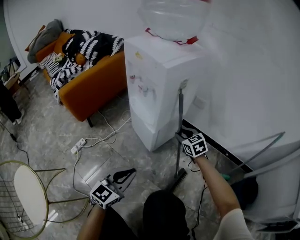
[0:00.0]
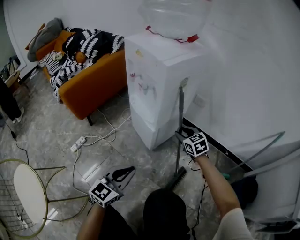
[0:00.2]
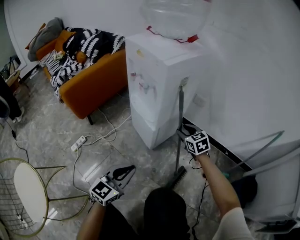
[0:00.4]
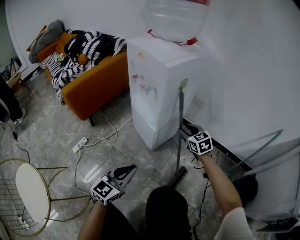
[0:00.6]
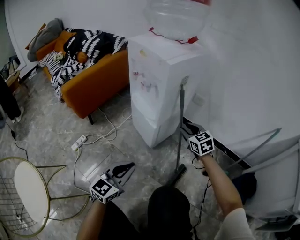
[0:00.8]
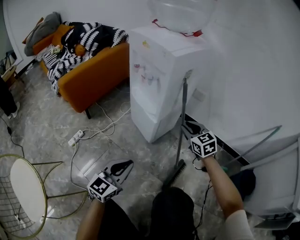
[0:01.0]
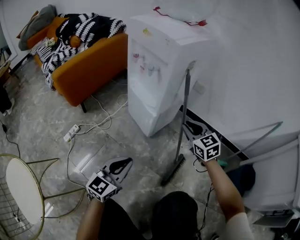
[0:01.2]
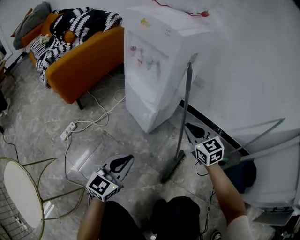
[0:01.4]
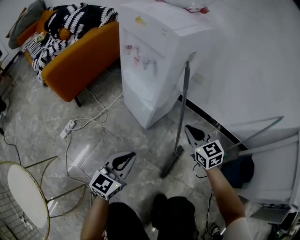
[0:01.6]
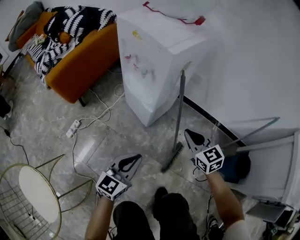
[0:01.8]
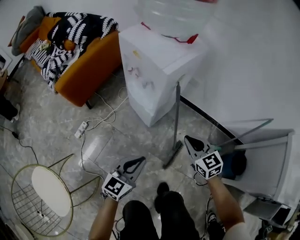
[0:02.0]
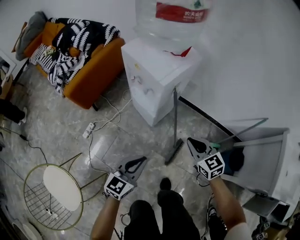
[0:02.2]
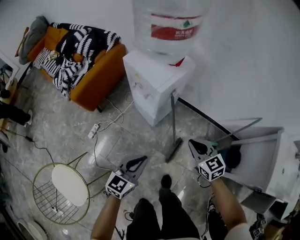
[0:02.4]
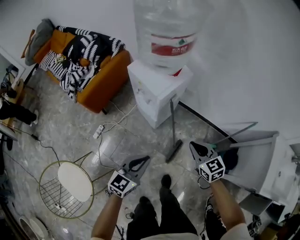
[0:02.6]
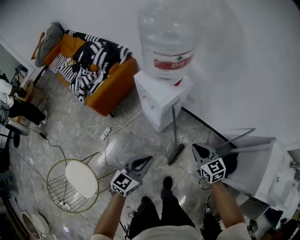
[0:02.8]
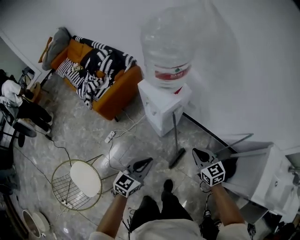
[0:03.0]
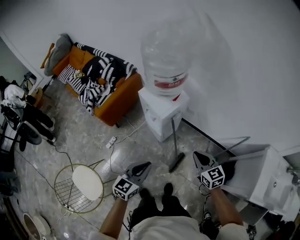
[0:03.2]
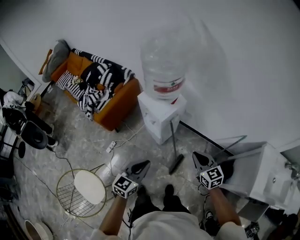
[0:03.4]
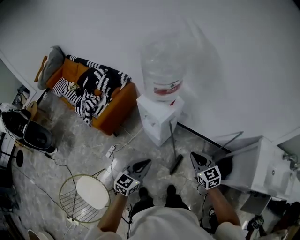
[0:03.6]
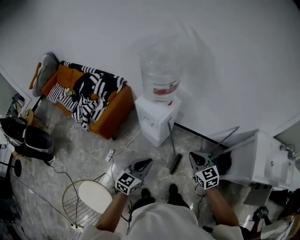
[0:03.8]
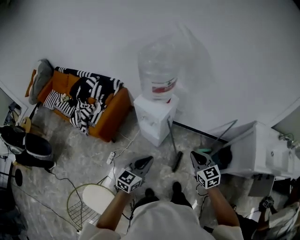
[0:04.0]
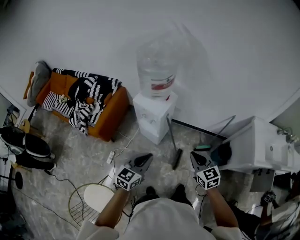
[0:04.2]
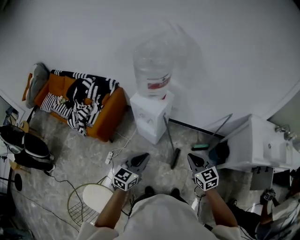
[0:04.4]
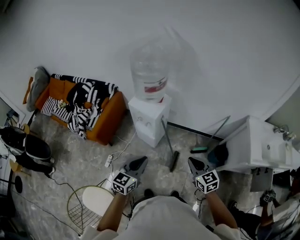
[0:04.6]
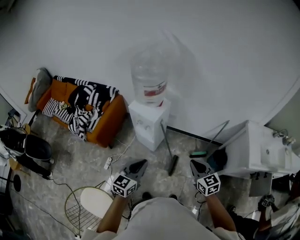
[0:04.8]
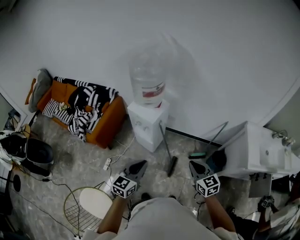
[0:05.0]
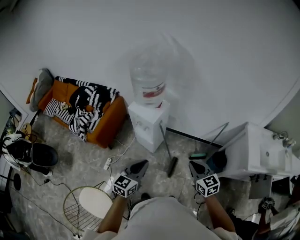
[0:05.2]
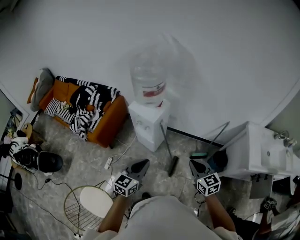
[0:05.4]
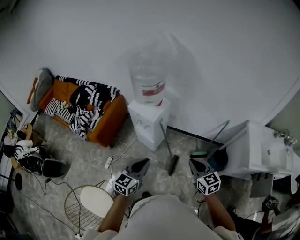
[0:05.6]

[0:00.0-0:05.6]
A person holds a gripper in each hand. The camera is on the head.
0:00.0 to 0:01.4: The right gripper heads backward, covering some 10 cm, and closes its fingers.
0:01.4 to 0:02.8: The two grippers go some 50 cm upward.
0:02.8 to 0:04.2: The left gripper shifts about 20 cm upward and to the left, while the right gripper goes about 25 cm upward and backward.
0:04.2 to 0:05.6: Both grippers travel together to the right, approximately 5 cm.

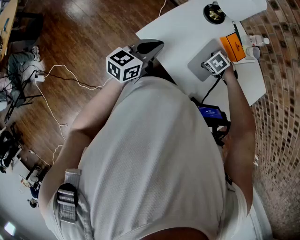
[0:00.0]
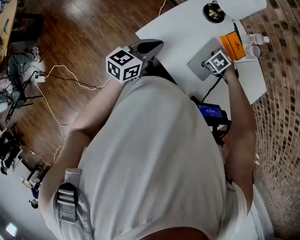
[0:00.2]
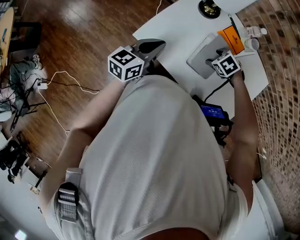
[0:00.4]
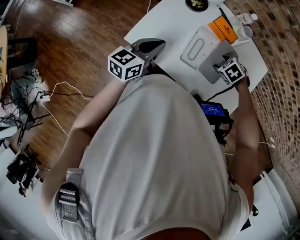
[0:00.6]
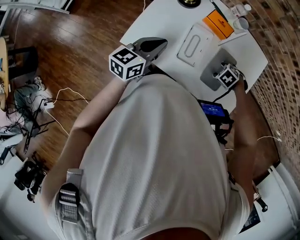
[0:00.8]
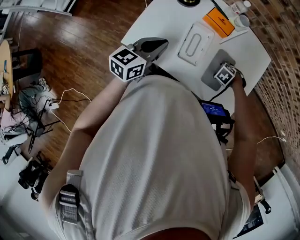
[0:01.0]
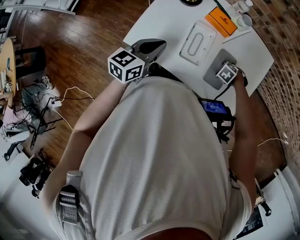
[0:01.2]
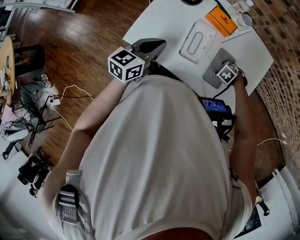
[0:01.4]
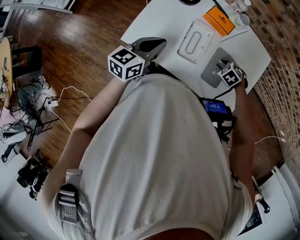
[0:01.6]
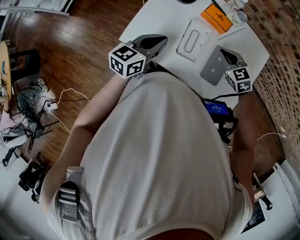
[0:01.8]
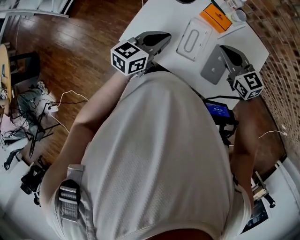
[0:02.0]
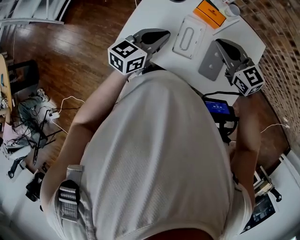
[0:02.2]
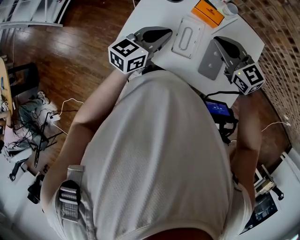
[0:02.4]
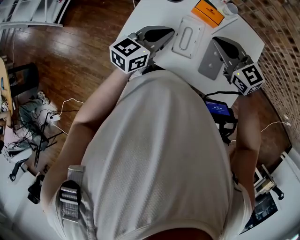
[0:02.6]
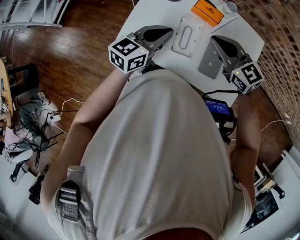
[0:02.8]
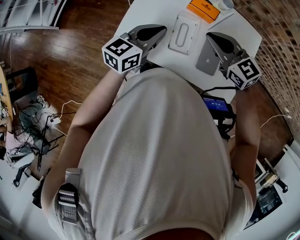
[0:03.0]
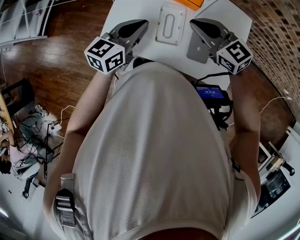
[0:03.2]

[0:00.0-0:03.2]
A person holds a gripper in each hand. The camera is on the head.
0:00.0 to 0:01.6: The right gripper swings up and down, approximately 10 cm each way, with 2 reversals, and closes; the left gripper ends up roughly 10 cm from where it was.
0:01.6 to 0:03.2: The left gripper shifts by roughly 5 cm, while the right gripper moves upward, about 25 cm, points its fingers some 60 degrees further upward, and closes up.

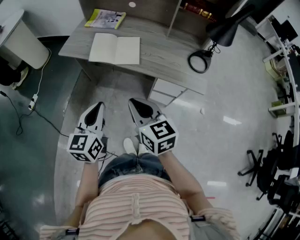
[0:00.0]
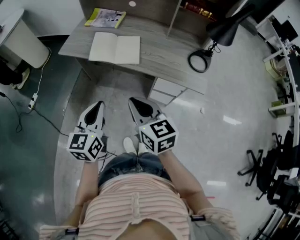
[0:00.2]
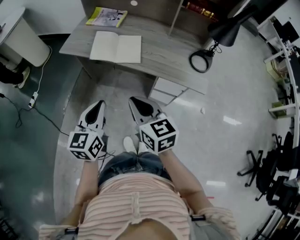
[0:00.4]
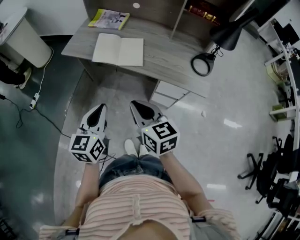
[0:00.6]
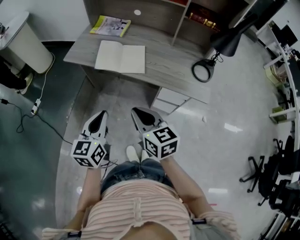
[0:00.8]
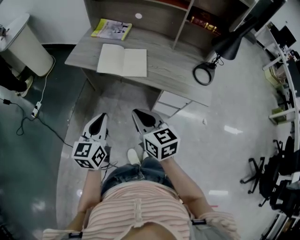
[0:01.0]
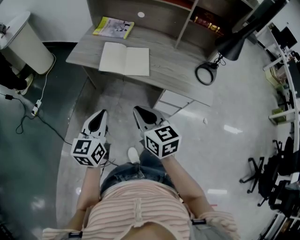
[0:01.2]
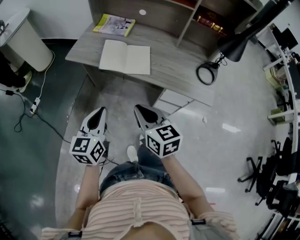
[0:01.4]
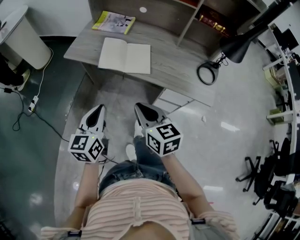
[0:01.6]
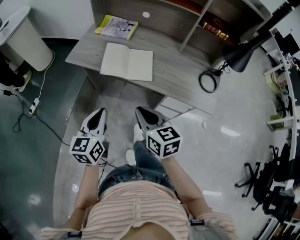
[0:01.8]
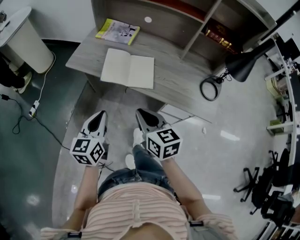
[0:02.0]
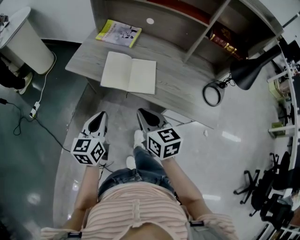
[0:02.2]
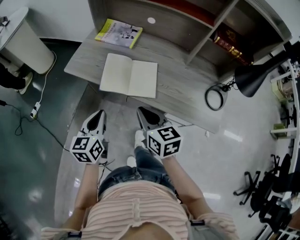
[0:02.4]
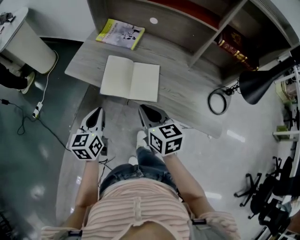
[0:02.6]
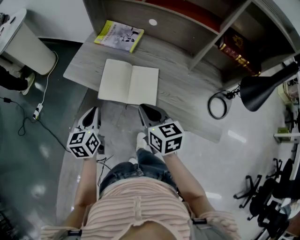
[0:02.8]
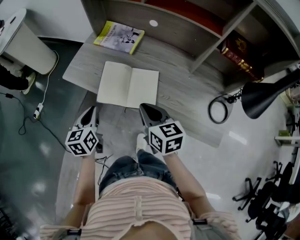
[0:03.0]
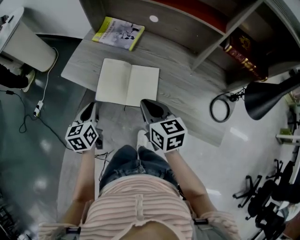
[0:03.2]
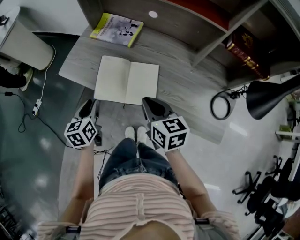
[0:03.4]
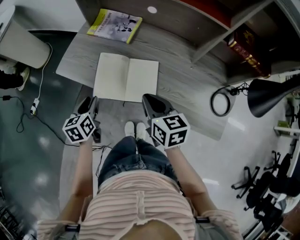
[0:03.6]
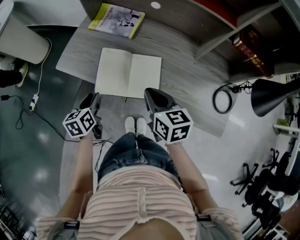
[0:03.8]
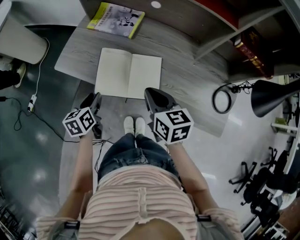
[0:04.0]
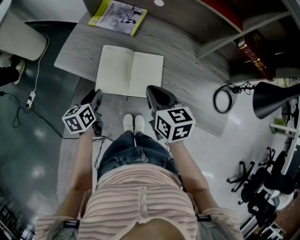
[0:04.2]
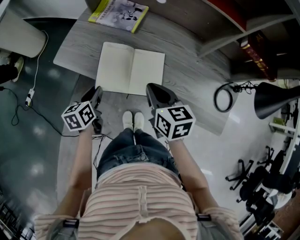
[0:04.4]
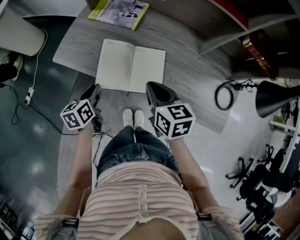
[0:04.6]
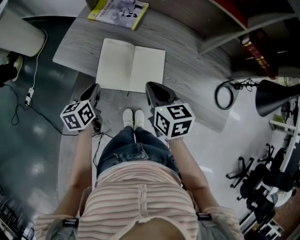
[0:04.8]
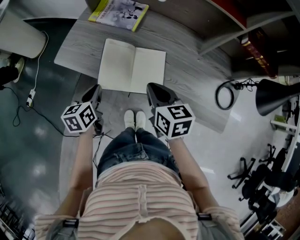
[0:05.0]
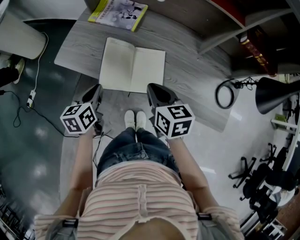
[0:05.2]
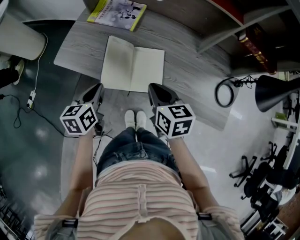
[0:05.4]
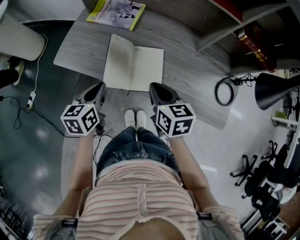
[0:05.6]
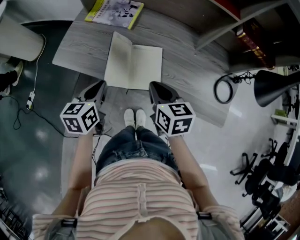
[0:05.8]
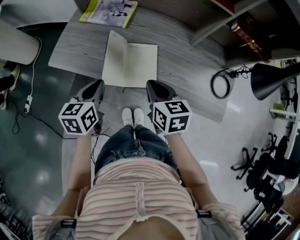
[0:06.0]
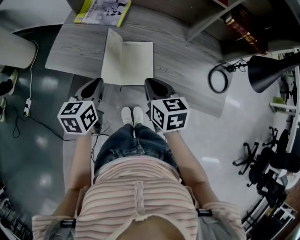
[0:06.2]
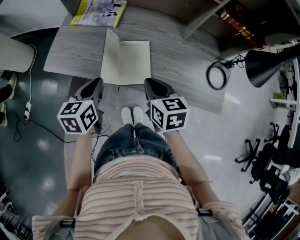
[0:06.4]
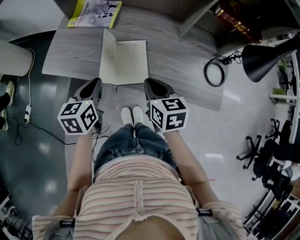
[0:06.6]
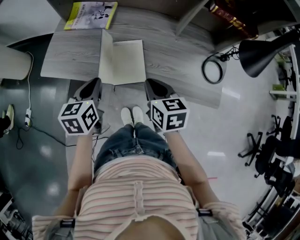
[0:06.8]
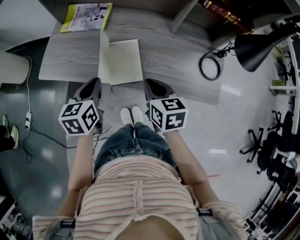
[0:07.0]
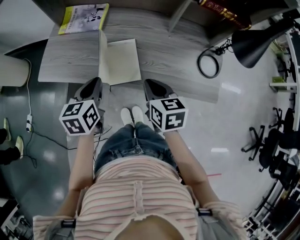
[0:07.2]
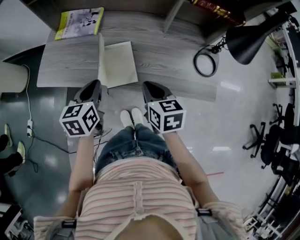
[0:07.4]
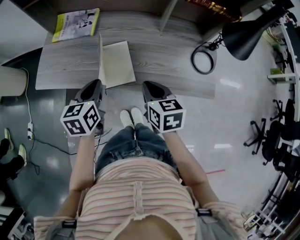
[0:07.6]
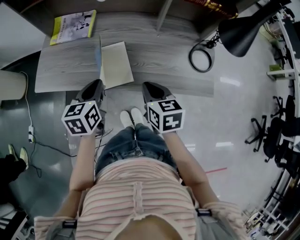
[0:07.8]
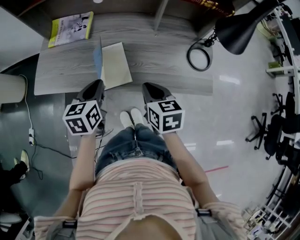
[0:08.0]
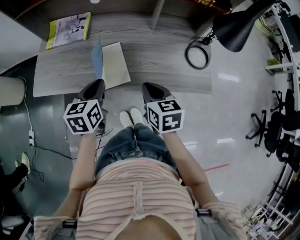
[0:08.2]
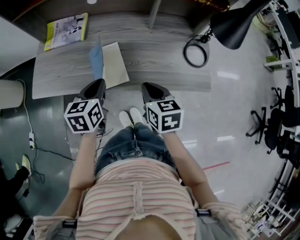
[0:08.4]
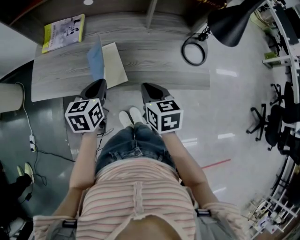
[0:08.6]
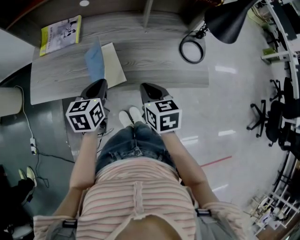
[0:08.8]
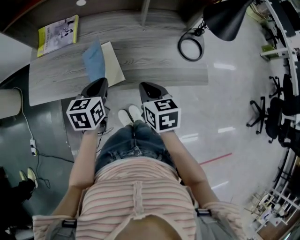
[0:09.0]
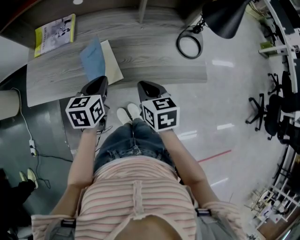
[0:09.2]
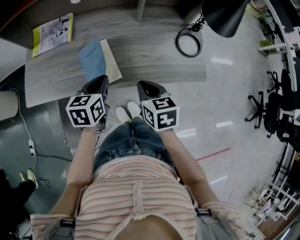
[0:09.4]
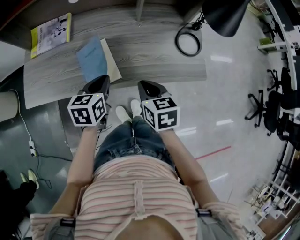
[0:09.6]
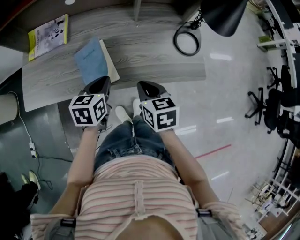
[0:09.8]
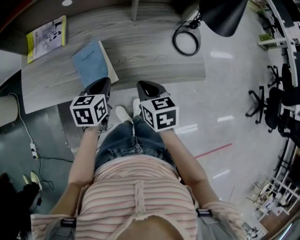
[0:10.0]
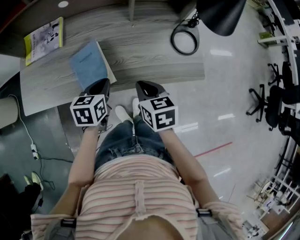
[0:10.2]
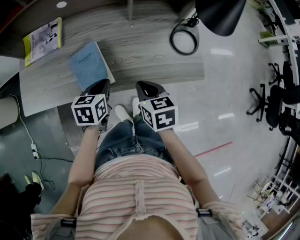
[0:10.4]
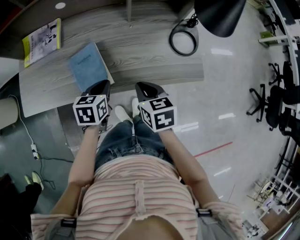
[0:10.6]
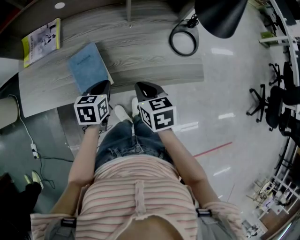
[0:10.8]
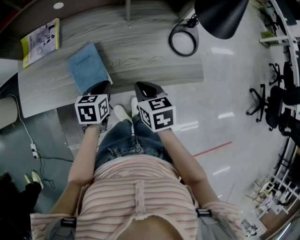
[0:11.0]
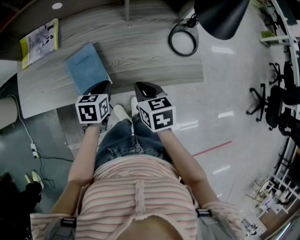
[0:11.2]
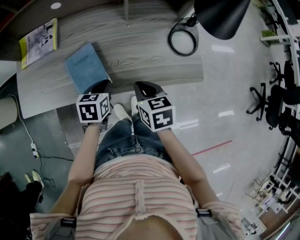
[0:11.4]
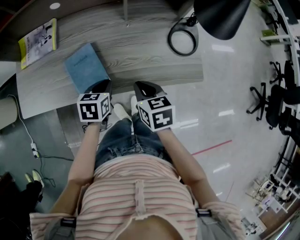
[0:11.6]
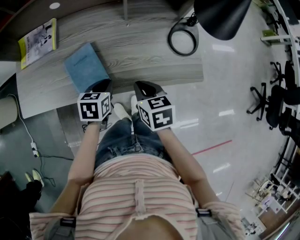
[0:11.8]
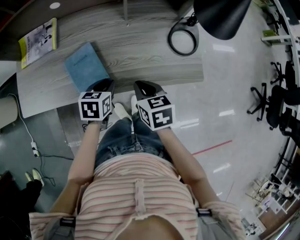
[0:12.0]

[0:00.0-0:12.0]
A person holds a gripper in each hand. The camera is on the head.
0:00.0 to 0:01.6: The right gripper travels forward by roughly 5 cm, while the left gripper travels forward and to the left by about 10 cm.
0:01.6 to 0:03.0: The grippers both shift forward by roughly 25 cm.
0:03.0 to 0:04.4: The right gripper shifts by some 5 cm. Meanwhile the left gripper shifts approximately 10 cm downward and forward, and opens.
0:04.4 to 0:06.0: The left gripper goes approximately 10 cm upward and to the right, and closes.
0:06.0 to 0:07.6: The grippers both shift to the right by some 10 cm.
0:07.6 to 0:09.0: The left gripper shifts some 5 cm to the right.
0:09.0 to 0:10.4: The left gripper goes about 5 cm downward.
0:10.4 to 0:12.0: The grippers move only a little.

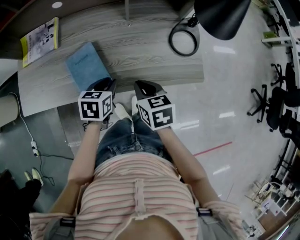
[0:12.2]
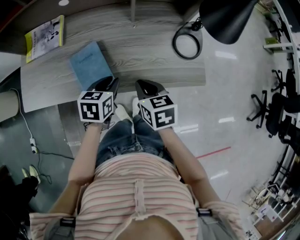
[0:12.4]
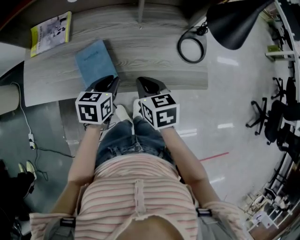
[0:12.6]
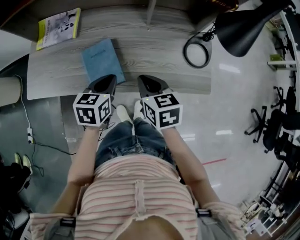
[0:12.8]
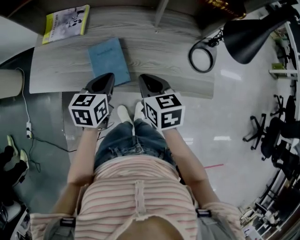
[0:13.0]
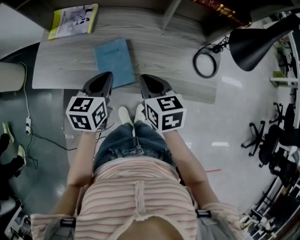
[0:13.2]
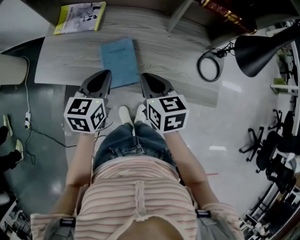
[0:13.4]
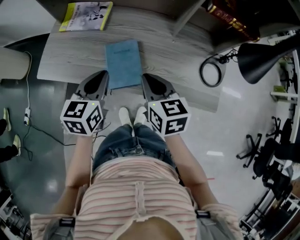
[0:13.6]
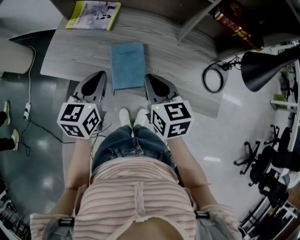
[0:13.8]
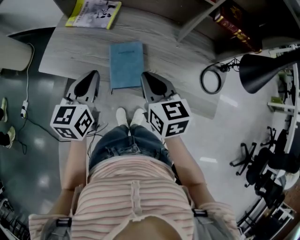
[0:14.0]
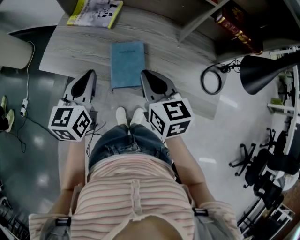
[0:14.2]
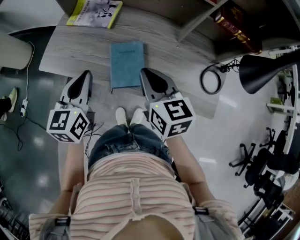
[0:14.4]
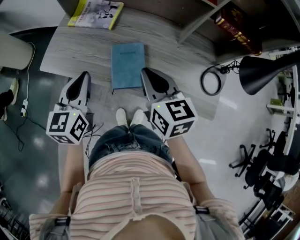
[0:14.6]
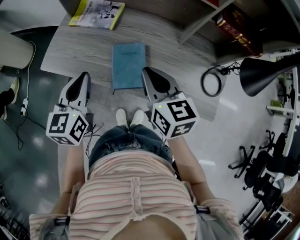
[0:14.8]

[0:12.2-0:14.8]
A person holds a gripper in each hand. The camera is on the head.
0:12.2 to 0:13.4: The right gripper goes about 10 cm to the left and upward. The left gripper is displaced upward and to the left by some 15 cm, changes its angle by approximately 30 degrees, and closes its fingers.
0:13.4 to 0:14.8: The left gripper moves to the left and upward, roughly 10 cm; the right gripper moves upward, roughly 5 cm.
